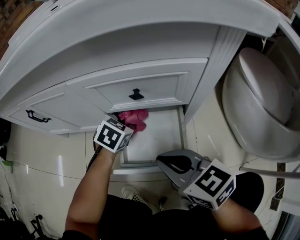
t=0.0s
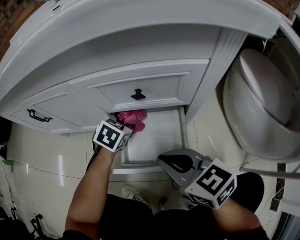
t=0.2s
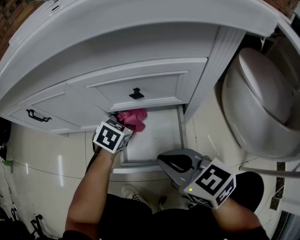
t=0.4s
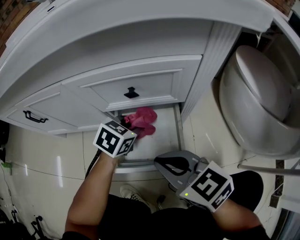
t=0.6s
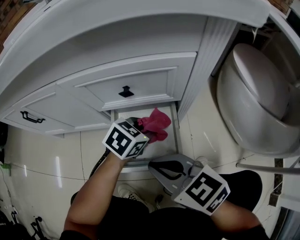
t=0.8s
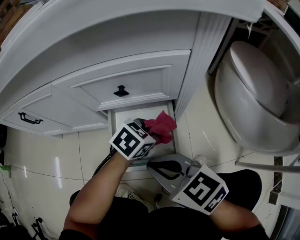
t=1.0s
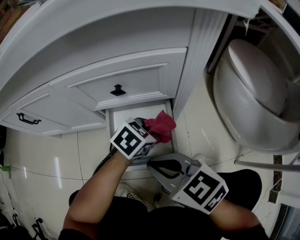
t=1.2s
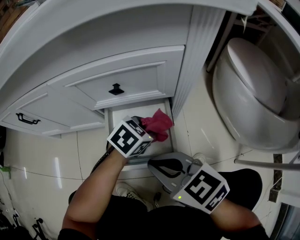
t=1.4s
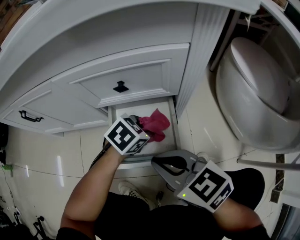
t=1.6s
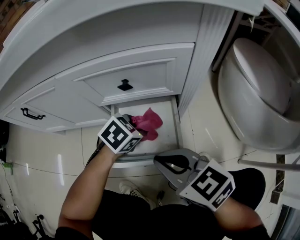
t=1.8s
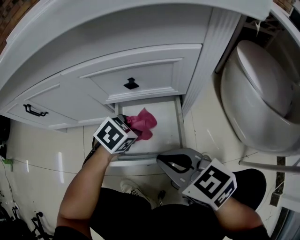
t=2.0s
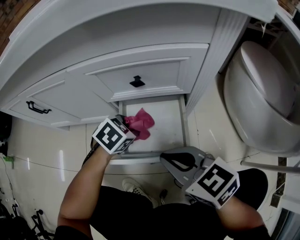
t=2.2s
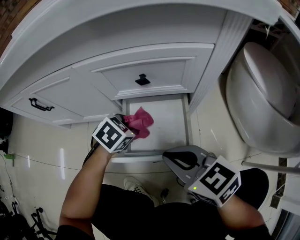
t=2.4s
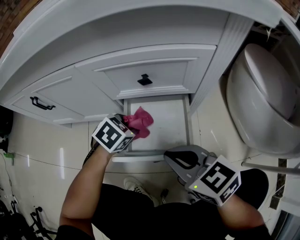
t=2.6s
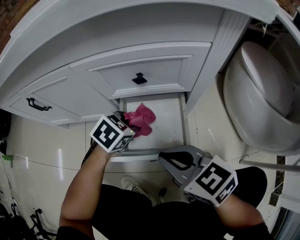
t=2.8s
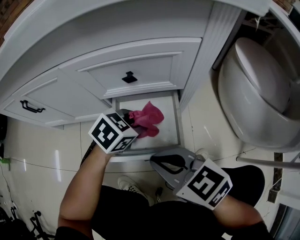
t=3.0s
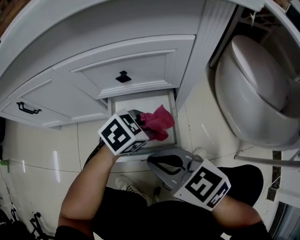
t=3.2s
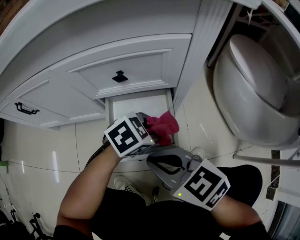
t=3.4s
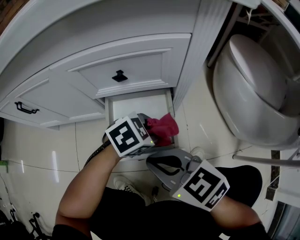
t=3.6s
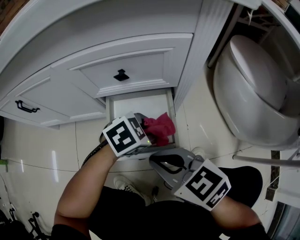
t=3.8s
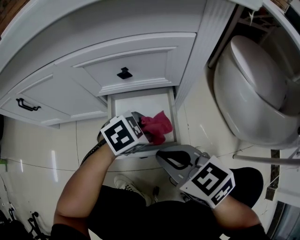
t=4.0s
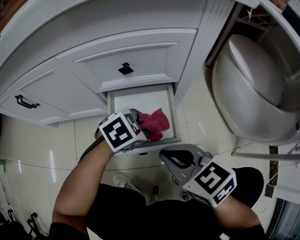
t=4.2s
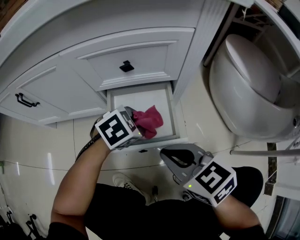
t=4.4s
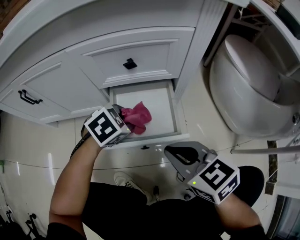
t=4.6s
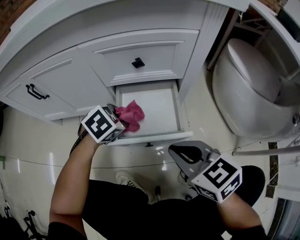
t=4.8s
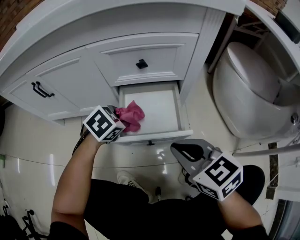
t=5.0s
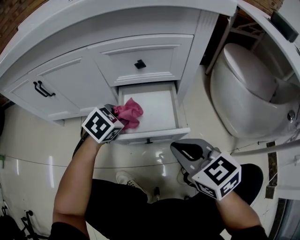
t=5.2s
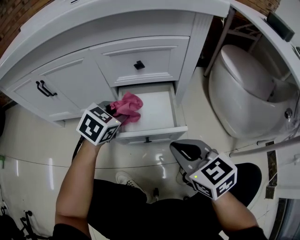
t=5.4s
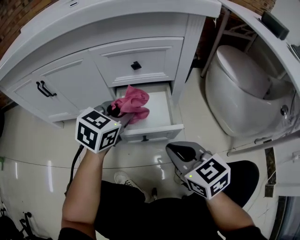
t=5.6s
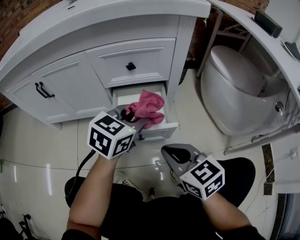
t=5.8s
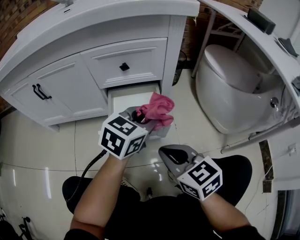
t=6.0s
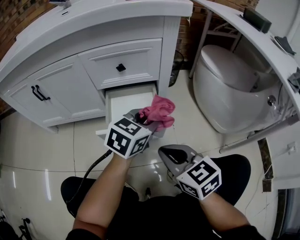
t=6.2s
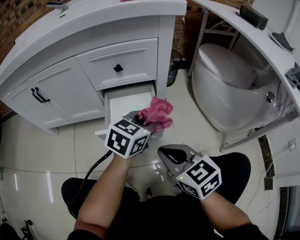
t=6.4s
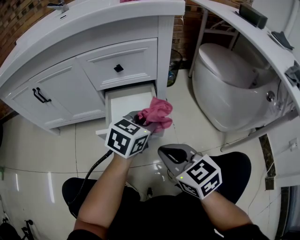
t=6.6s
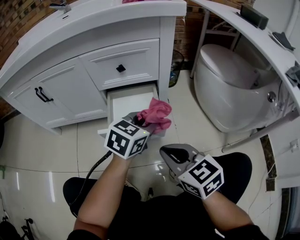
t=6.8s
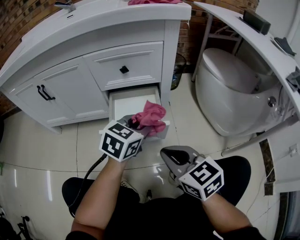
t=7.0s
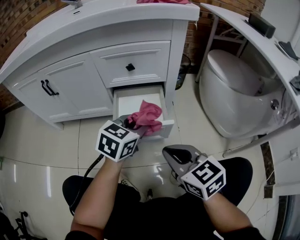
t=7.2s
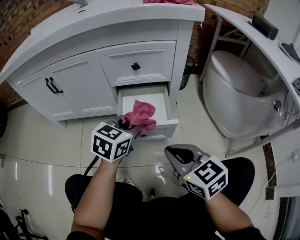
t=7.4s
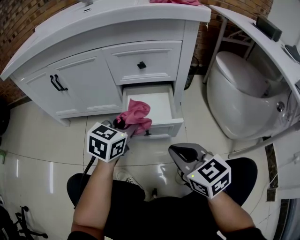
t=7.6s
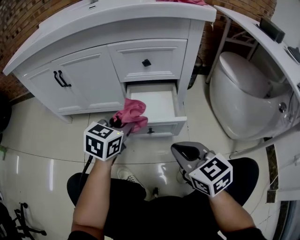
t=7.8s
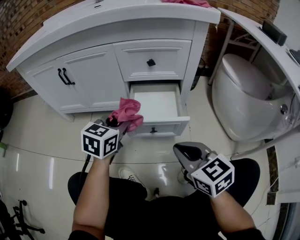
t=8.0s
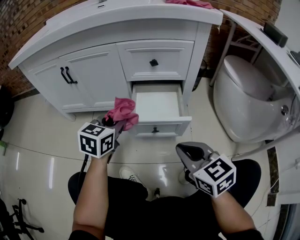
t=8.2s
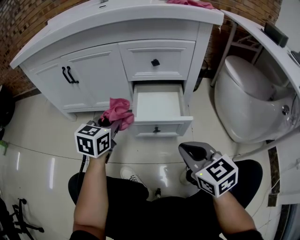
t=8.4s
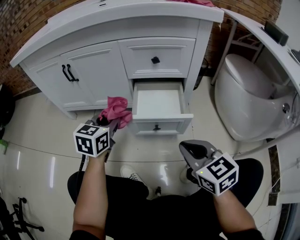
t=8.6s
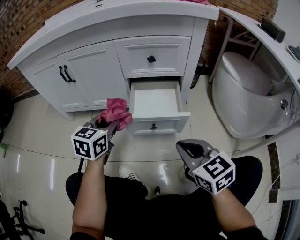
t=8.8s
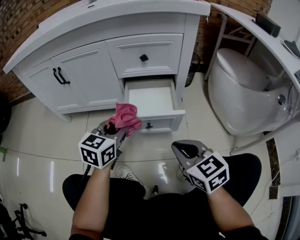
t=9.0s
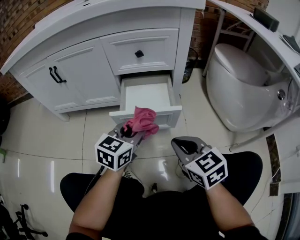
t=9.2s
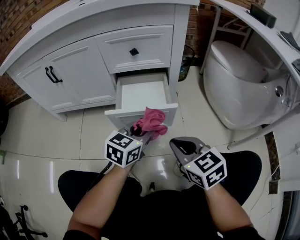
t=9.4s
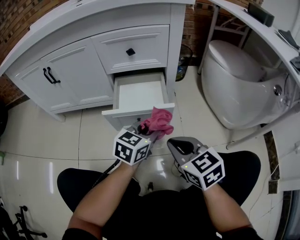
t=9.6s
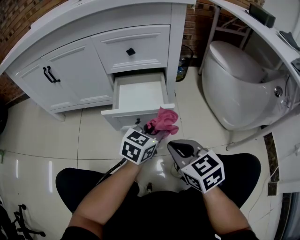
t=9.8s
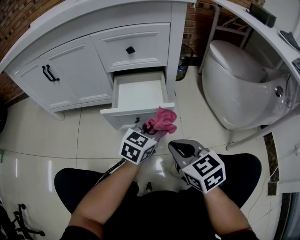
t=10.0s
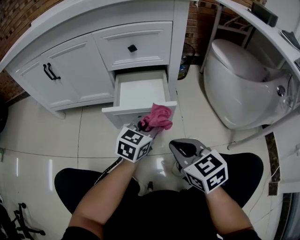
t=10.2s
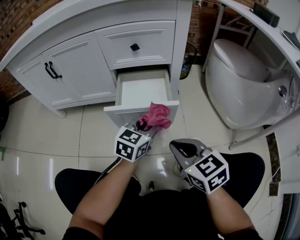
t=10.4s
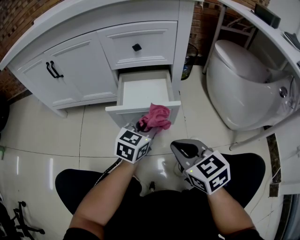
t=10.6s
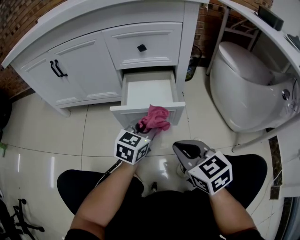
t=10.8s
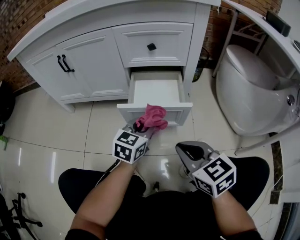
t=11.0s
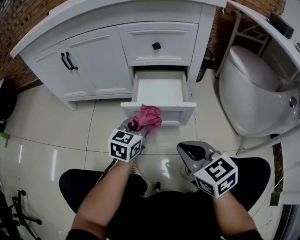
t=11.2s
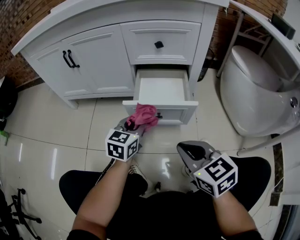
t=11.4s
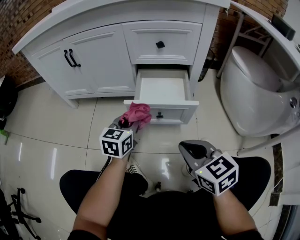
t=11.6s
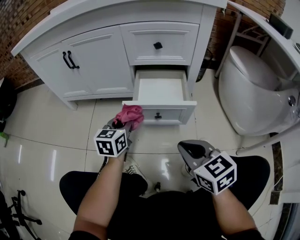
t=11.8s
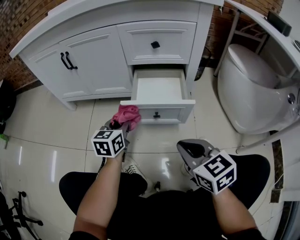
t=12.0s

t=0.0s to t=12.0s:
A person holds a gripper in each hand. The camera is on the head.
t=0.0s to t=1.6s: The left gripper changes place by about 15 cm, and swivels some 20 degrees.
t=4.4s to t=6.0s: The right gripper shifts by roughly 10 cm; the left gripper moves upward, about 15 cm, and tips its fingers upward by roughly 30 degrees.
t=6.0s to t=7.6s: The left gripper travels to the left by approximately 10 cm.
t=7.6s to t=9.0s: The left gripper moves to the left, approximately 5 cm.
t=9.0s to t=10.4s: The left gripper moves to the right and downward, about 15 cm.
t=10.4s to t=12.0s: The left gripper shifts some 20 cm to the left, and changes its angle by approximately 30 degrees.

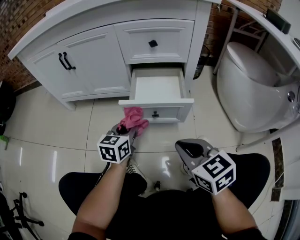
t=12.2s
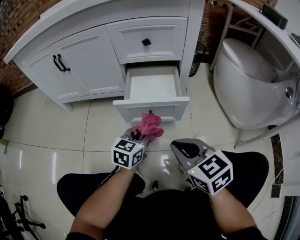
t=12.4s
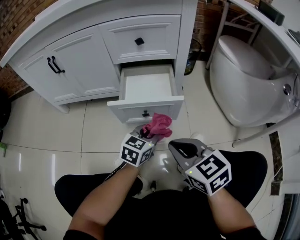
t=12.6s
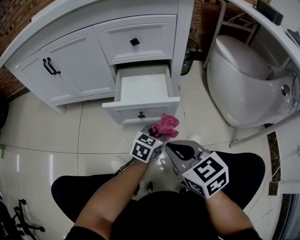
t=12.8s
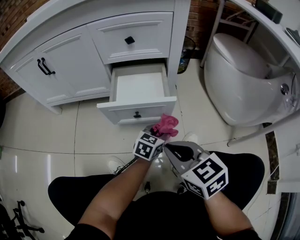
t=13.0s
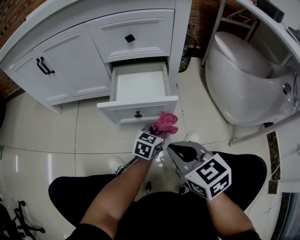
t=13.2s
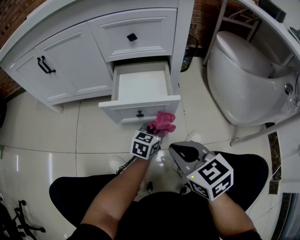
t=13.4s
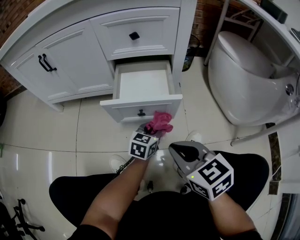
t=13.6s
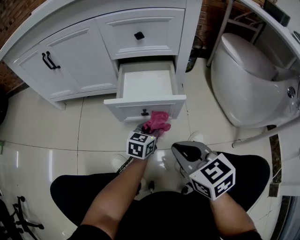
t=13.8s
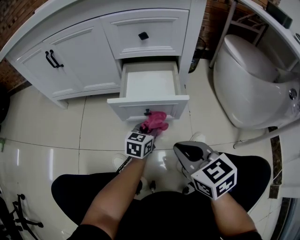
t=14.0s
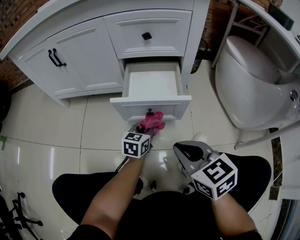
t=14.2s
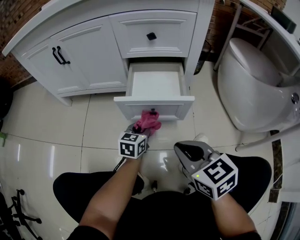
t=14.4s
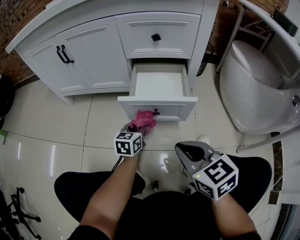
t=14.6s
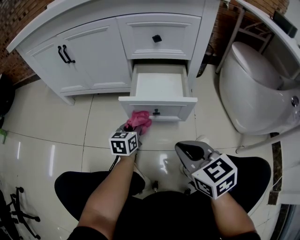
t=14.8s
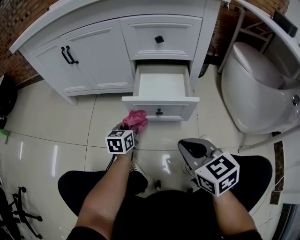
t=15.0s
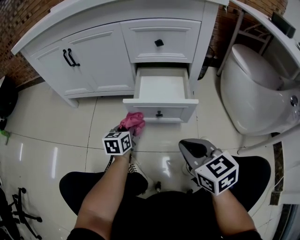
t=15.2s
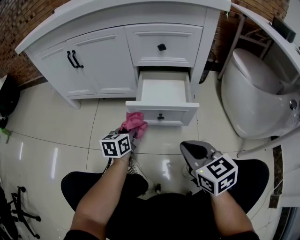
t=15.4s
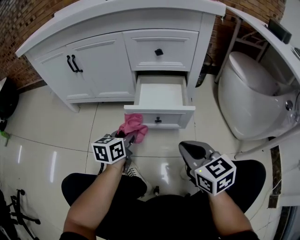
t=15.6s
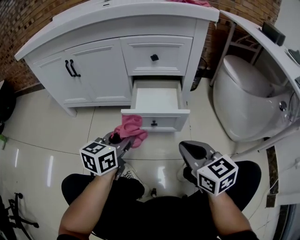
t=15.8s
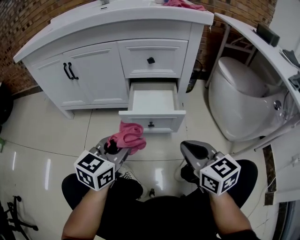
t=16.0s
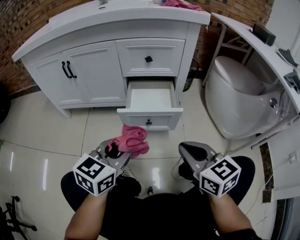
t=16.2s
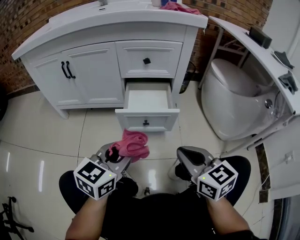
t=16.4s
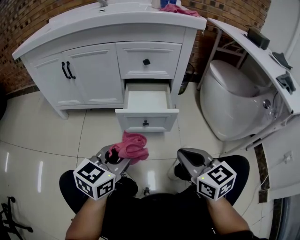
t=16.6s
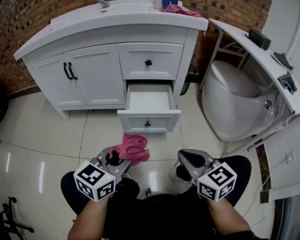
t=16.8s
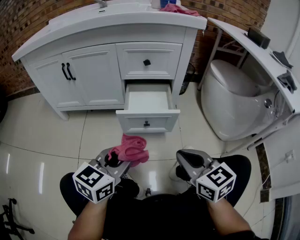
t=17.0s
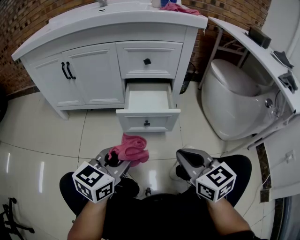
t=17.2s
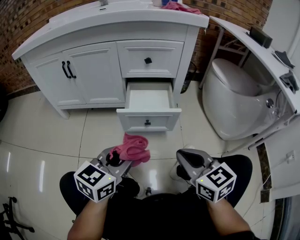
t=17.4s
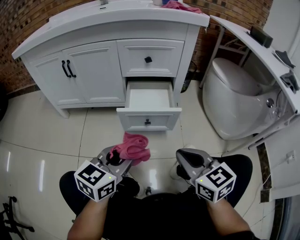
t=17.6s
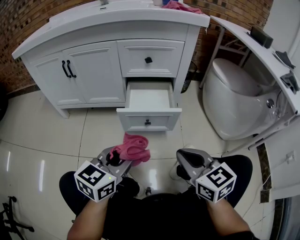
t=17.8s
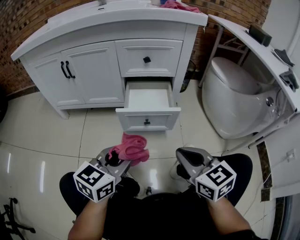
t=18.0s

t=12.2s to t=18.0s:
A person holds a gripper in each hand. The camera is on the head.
t=12.2s to t=13.6s: The left gripper shifts roughly 20 cm to the right and downward.
t=13.6s to t=15.0s: The left gripper shifts about 20 cm to the left, and rotates roughly 20 degrees.
t=15.0s to t=16.6s: The left gripper travels upward and backward by some 25 cm, and changes its angle by about 30 degrees. Meanwhile the right gripper travels upward by approximately 5 cm.
t=16.6s to t=18.0s: Both grippers stay about where they are.

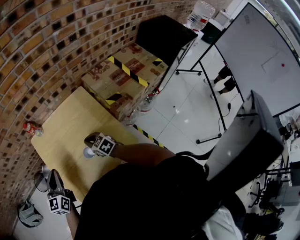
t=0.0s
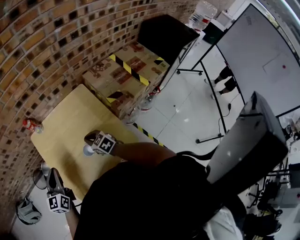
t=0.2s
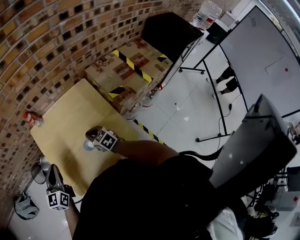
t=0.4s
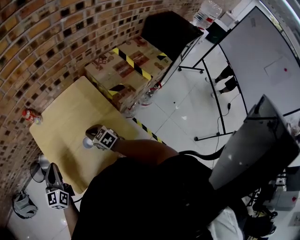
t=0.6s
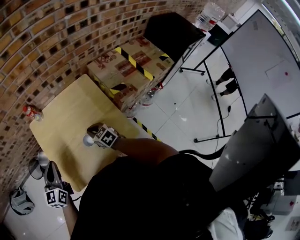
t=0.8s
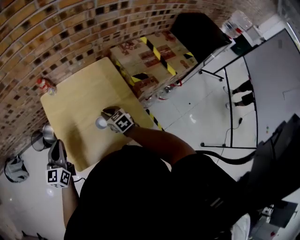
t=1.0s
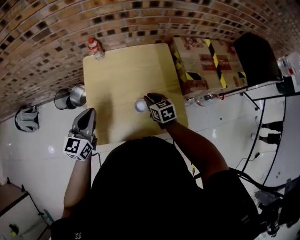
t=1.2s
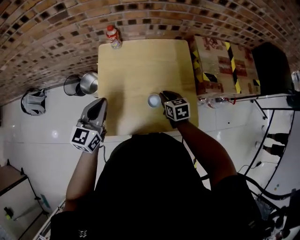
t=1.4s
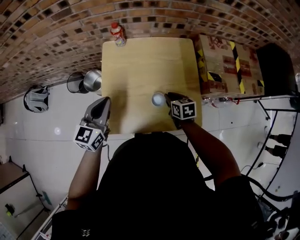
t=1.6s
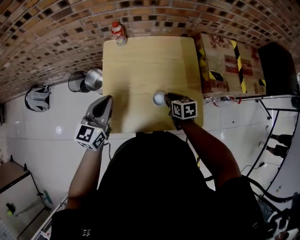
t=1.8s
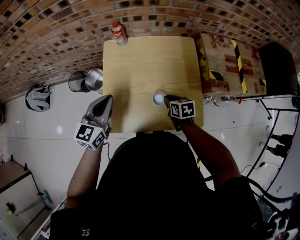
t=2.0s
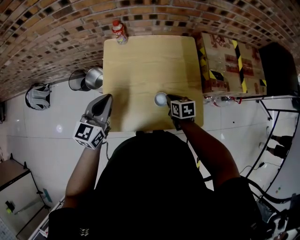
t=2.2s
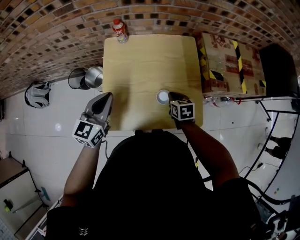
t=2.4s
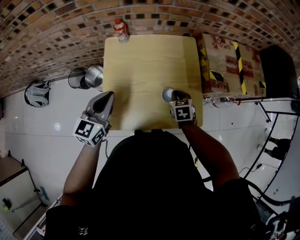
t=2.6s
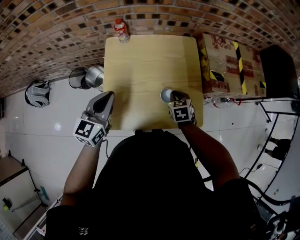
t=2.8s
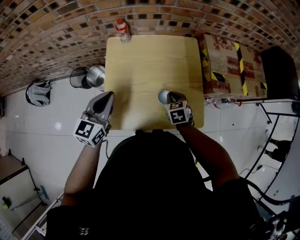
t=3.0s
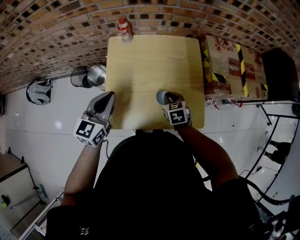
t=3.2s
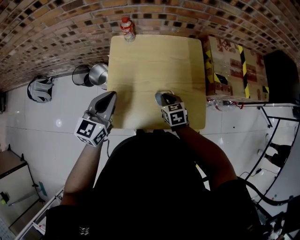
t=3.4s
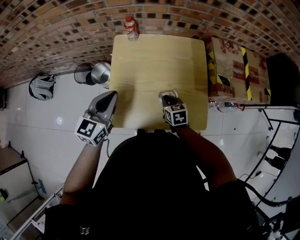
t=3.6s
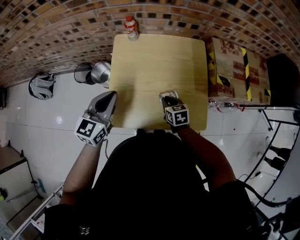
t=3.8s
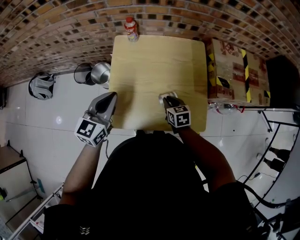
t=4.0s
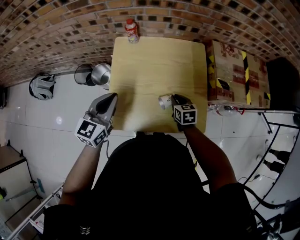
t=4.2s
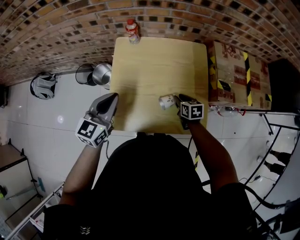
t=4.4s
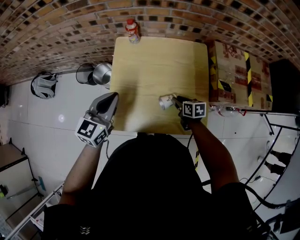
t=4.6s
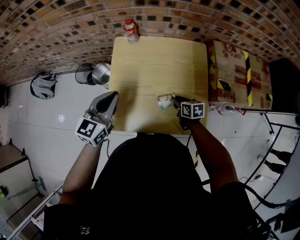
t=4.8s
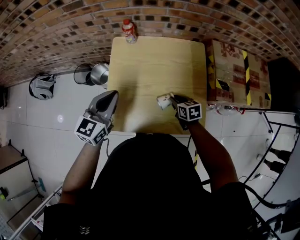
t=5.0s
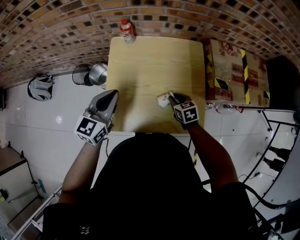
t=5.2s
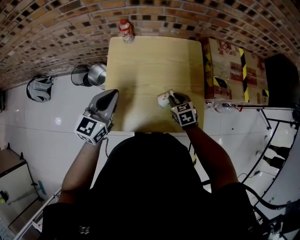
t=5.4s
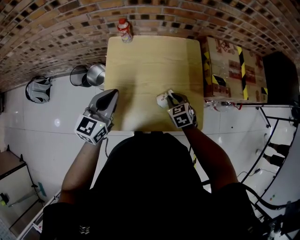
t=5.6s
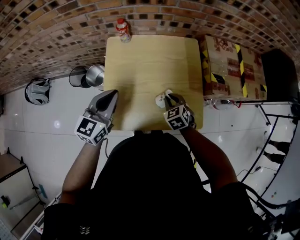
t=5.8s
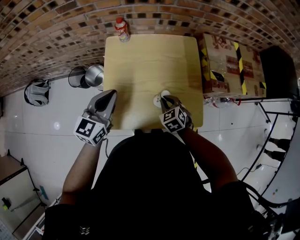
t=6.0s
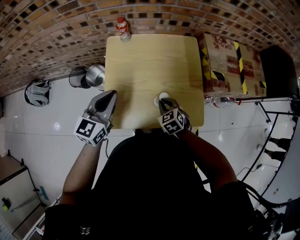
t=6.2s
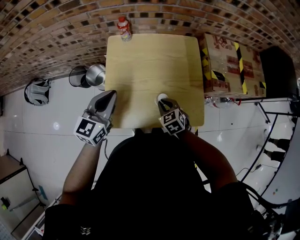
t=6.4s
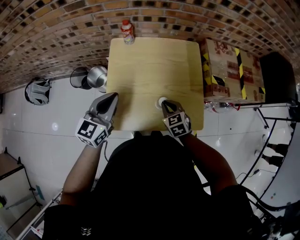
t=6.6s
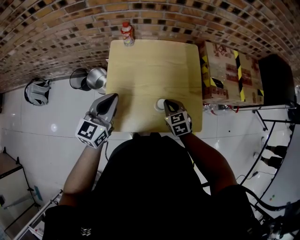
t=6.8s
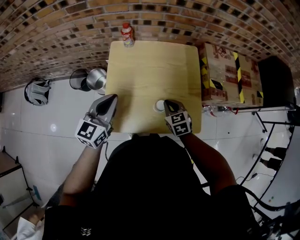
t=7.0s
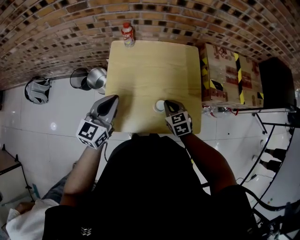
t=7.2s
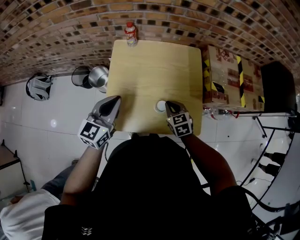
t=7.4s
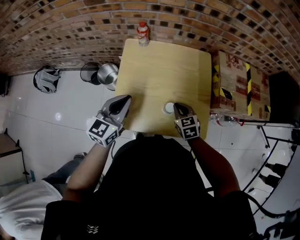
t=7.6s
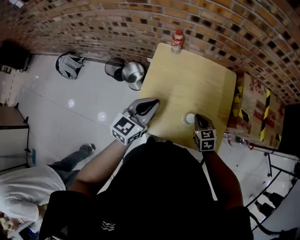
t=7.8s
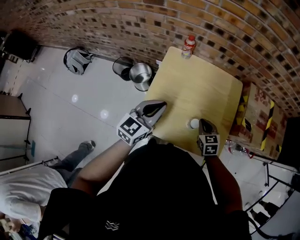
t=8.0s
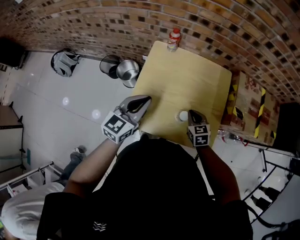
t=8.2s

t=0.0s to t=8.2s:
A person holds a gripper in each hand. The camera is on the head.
t=0.0s to t=1.6s: The right gripper changes place by approximately 5 cm.
t=3.2s to t=5.0s: The right gripper moves some 5 cm.
t=5.0s to t=6.6s: The right gripper is displaced backward and to the left by roughly 5 cm, swivels some 30 degrees, and closes its fingers.
t=6.6s to t=8.2s: There are only small adjustments of the grippers.
